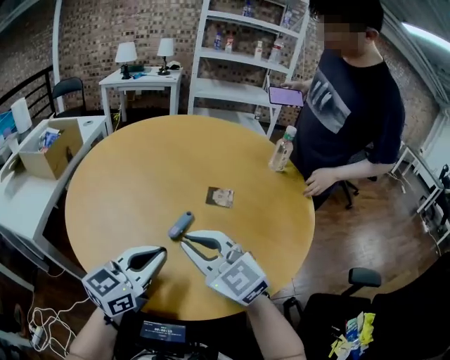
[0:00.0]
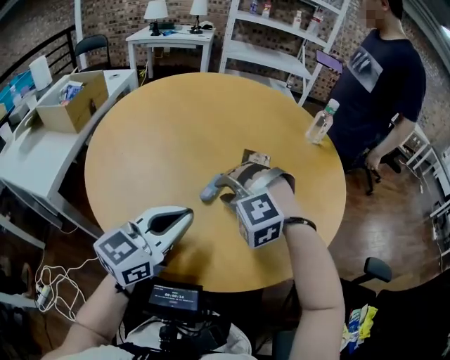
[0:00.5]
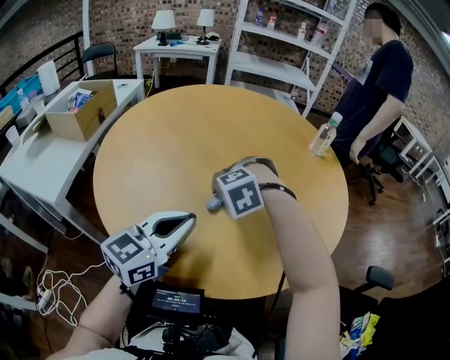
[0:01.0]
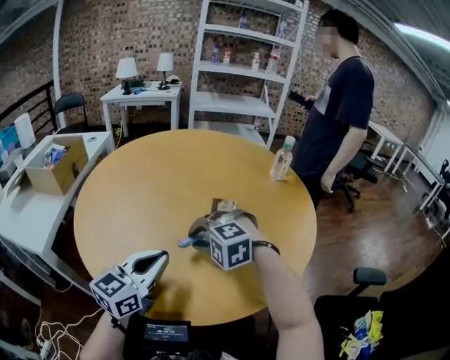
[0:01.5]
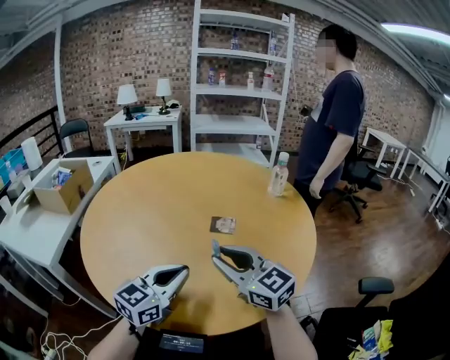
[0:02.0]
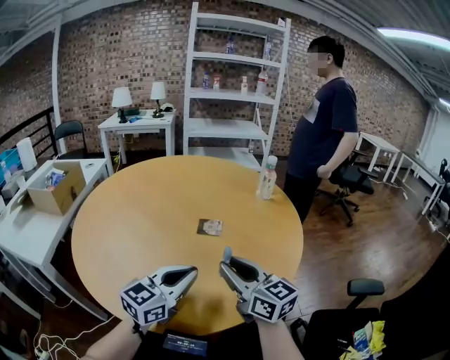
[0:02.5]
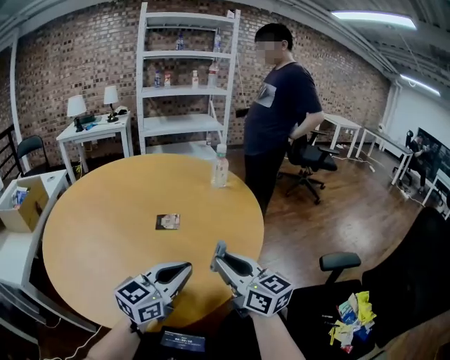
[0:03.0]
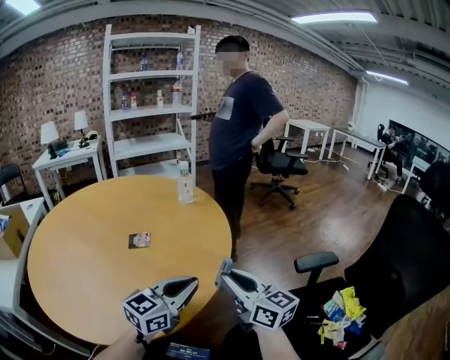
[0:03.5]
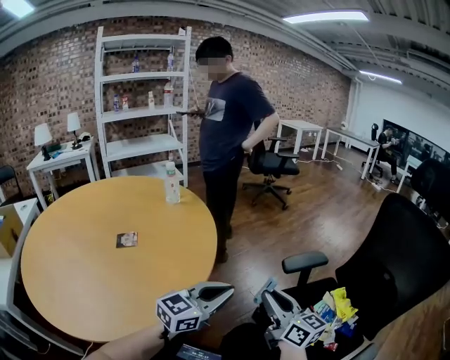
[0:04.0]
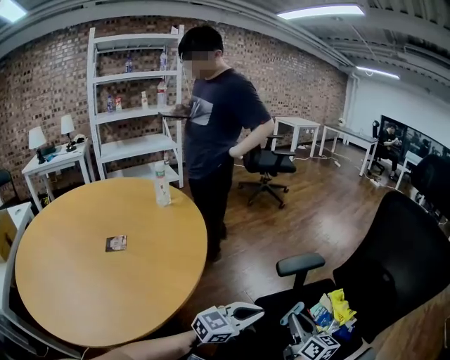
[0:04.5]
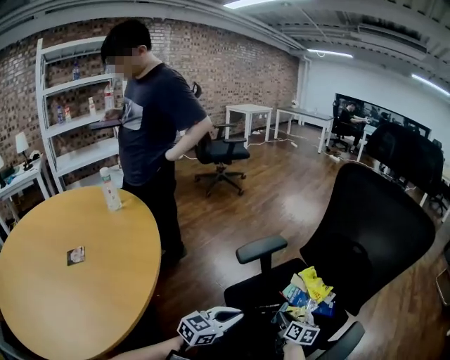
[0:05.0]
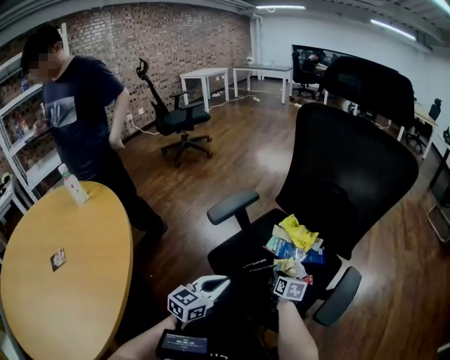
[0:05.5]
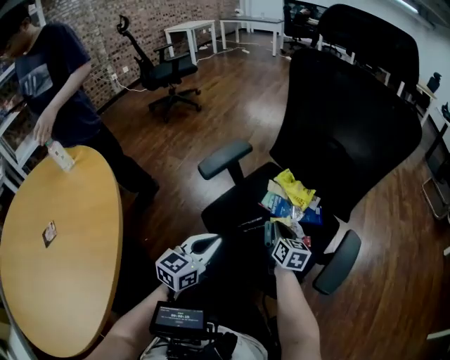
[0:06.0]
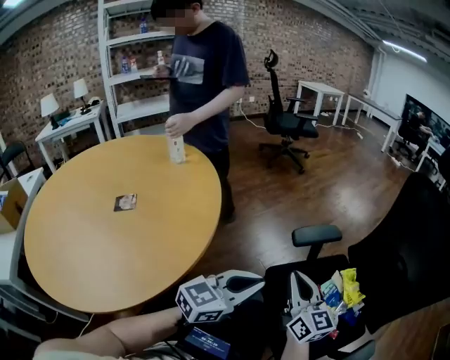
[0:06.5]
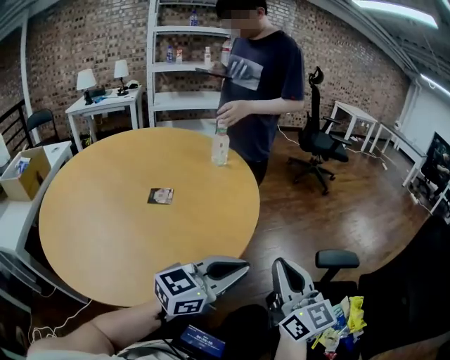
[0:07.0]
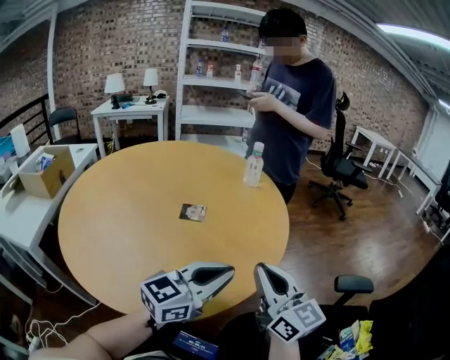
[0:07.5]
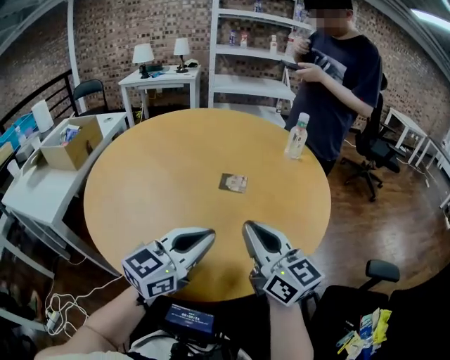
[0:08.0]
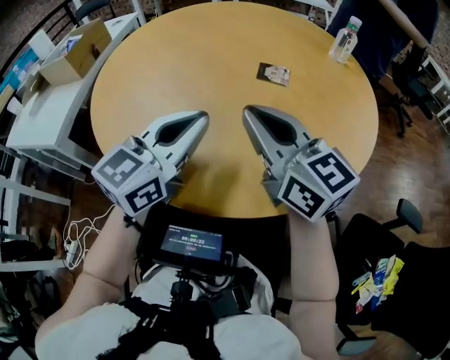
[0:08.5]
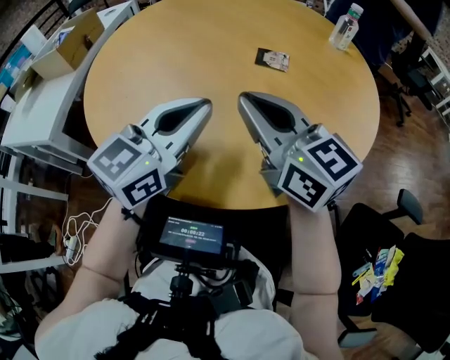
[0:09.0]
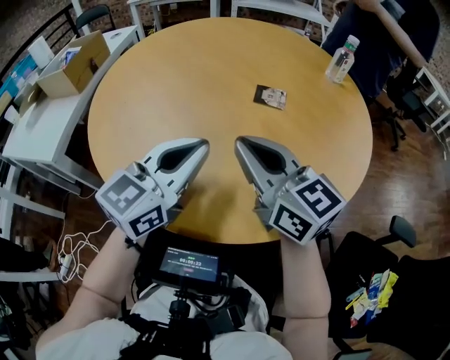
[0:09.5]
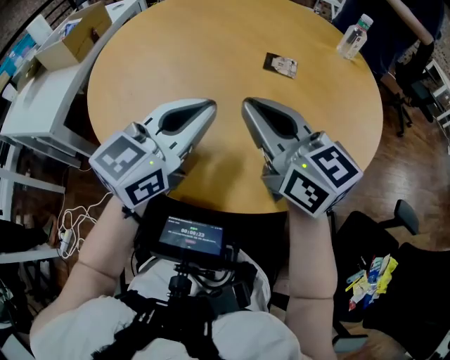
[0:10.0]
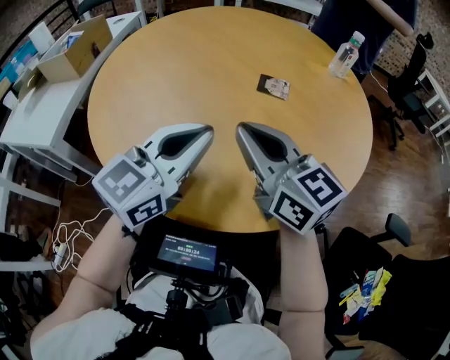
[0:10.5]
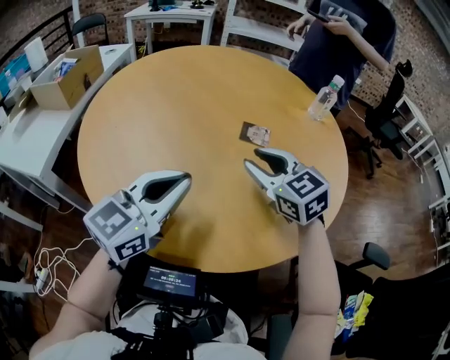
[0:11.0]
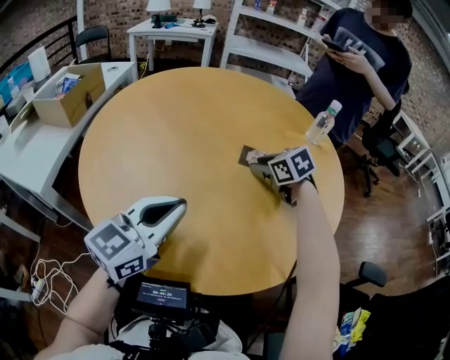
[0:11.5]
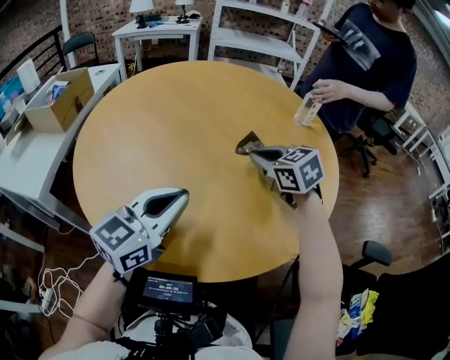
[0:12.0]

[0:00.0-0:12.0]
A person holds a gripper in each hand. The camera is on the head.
0:00.0 to 0:02.0: The right gripper travels downward and back again, roughly 10 cm each way, while the left gripper moves roughly 5 cm.
0:02.0 to 0:04.0: The right gripper moves approximately 40 cm, and turns by approximately 60 degrees. Meanwhile the left gripper ends up some 40 cm from where it was, and rotates about 40 degrees.
0:04.0 to 0:06.0: The right gripper shifts by about 40 cm, and changes its angle by approximately 50 degrees. The left gripper ends up approximately 25 cm from where it was, and changes its angle by some 20 degrees.
0:06.0 to 0:08.0: Both grippers are carried approximately 60 cm. The left gripper rotates some 60 degrees. The right gripper swivels approximately 90 degrees.
0:08.0 to 0:10.0: Both grippers travel together to the left, about 10 cm.
0:10.0 to 0:12.0: The right gripper travels forward and to the right by roughly 20 cm, tips its fingers downward by roughly 30 degrees, and opens, then closes once more.

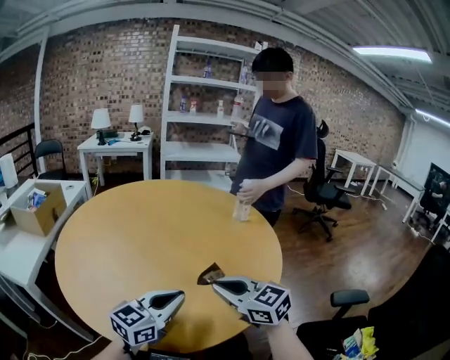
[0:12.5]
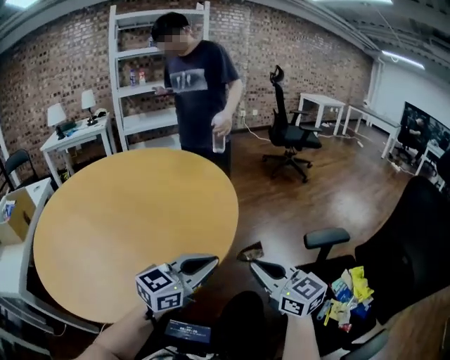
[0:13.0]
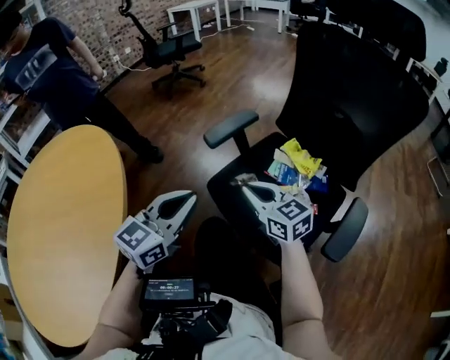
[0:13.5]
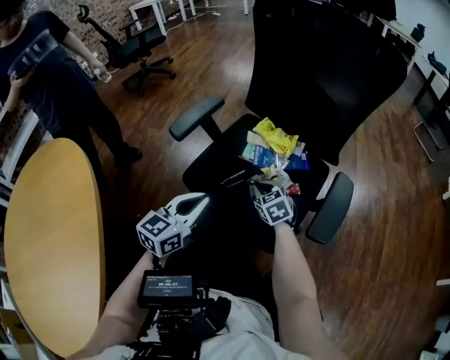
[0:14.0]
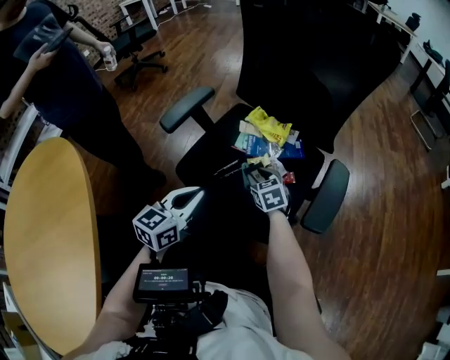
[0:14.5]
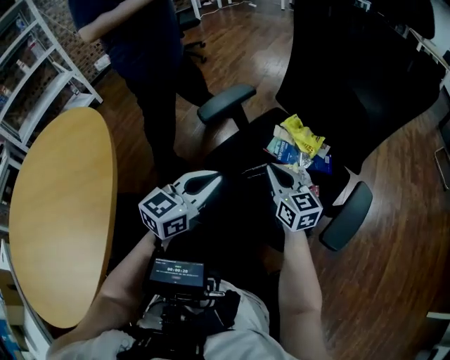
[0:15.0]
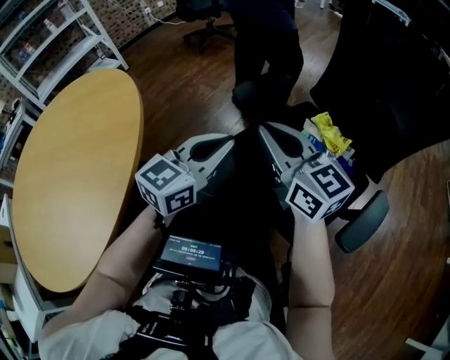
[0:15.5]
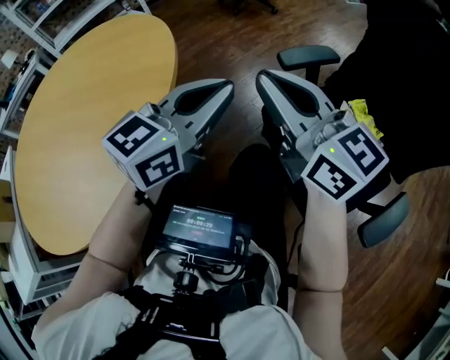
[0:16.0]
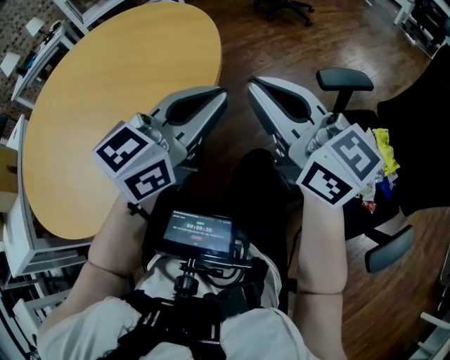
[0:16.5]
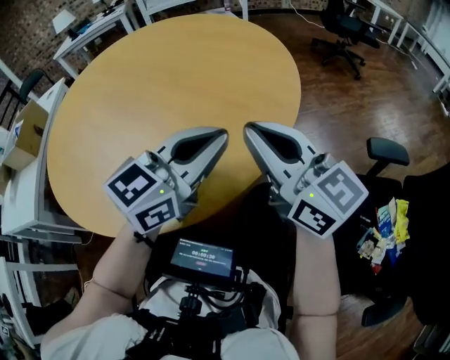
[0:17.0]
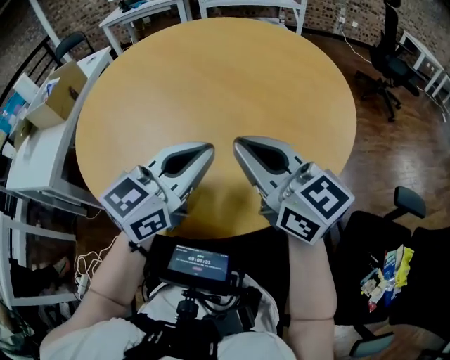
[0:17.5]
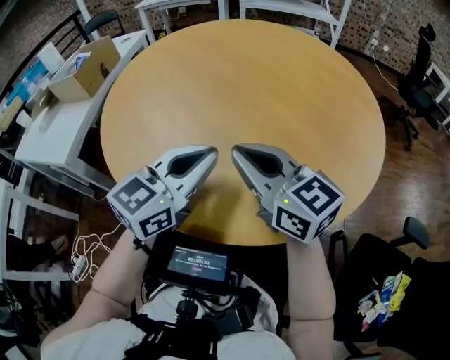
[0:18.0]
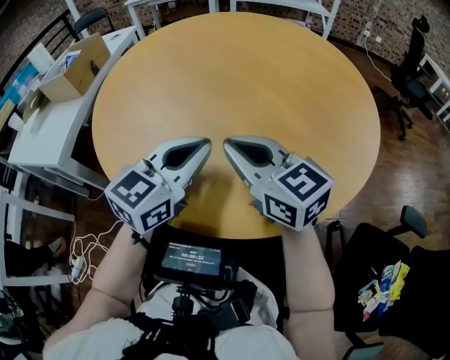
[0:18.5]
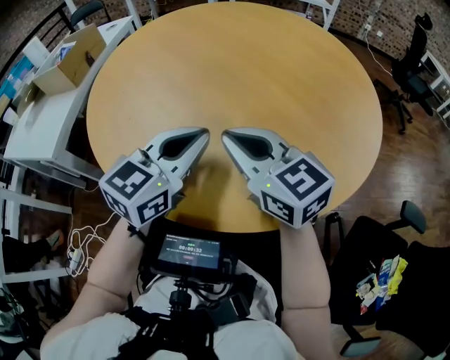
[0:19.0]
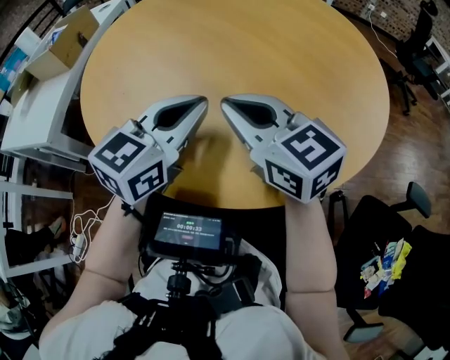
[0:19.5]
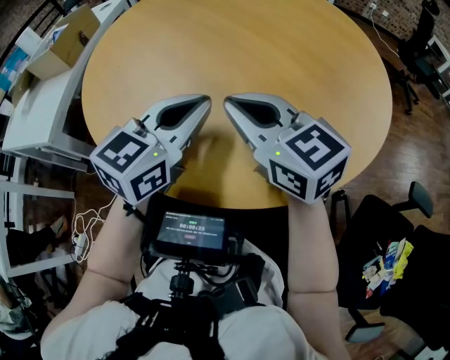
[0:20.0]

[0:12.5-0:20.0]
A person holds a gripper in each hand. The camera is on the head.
0:12.5 to 0:14.5: The pair of grippers is taken about 60 cm. The right gripper turns by some 100 degrees, and opens. The left gripper swivels about 60 degrees.
0:14.5 to 0:16.5: The left gripper shifts by roughly 35 cm, and changes its angle by about 40 degrees. The right gripper changes place by approximately 50 cm, tips its fingers upward by approximately 50 degrees, and closes.
0:16.5 to 0:18.0: The pair of grippers is taken approximately 40 cm. The left gripper turns by about 40 degrees. The right gripper swivels some 40 degrees.
0:18.0 to 0:20.0: There are only small adjustments of the grippers.

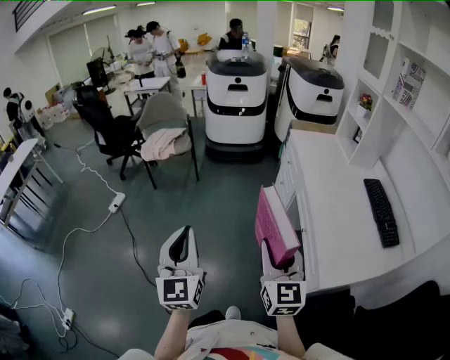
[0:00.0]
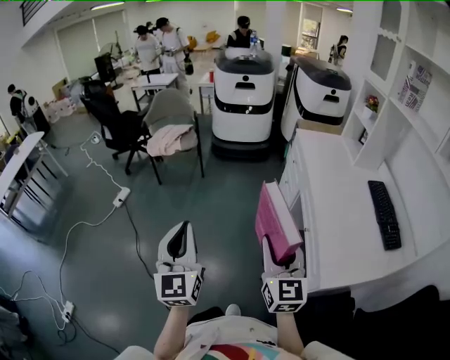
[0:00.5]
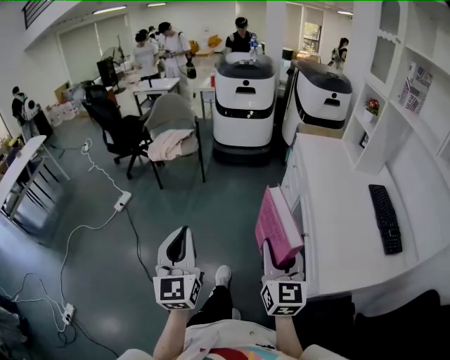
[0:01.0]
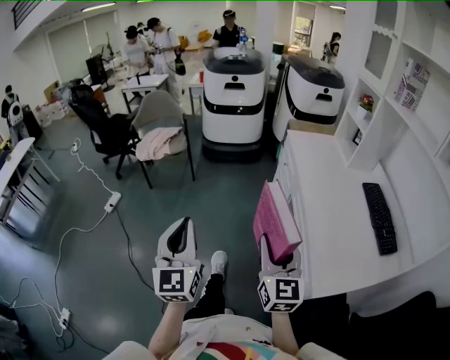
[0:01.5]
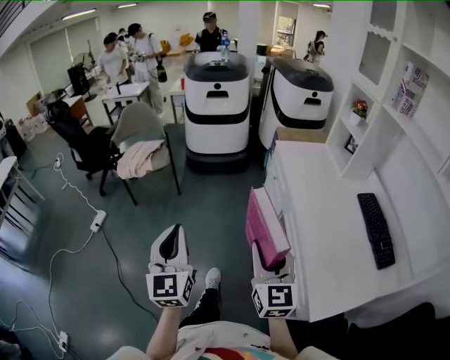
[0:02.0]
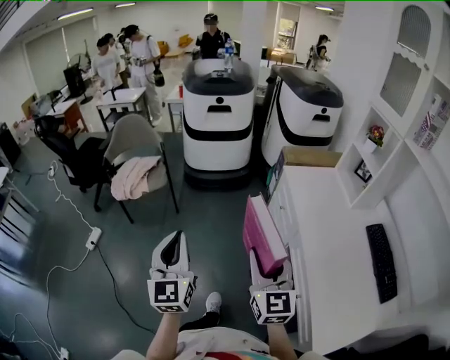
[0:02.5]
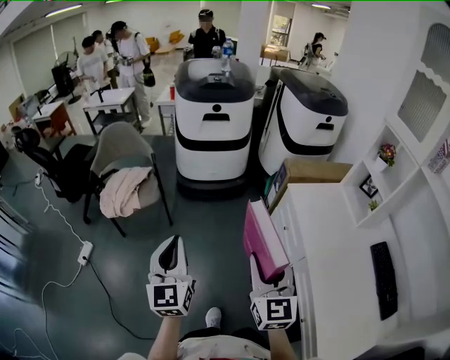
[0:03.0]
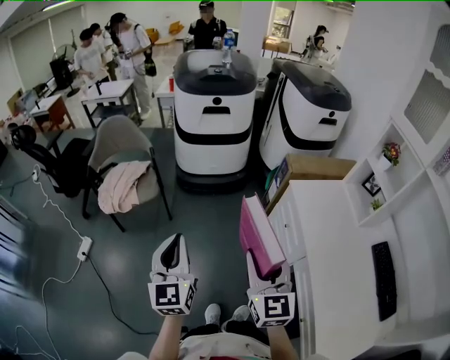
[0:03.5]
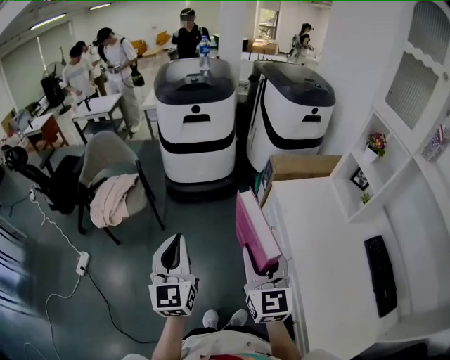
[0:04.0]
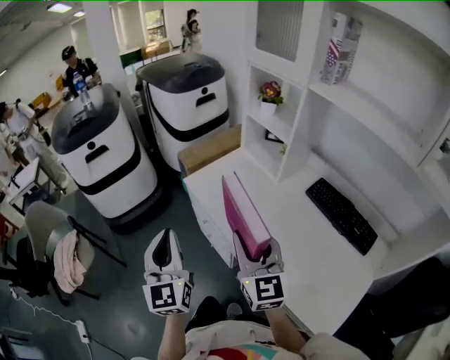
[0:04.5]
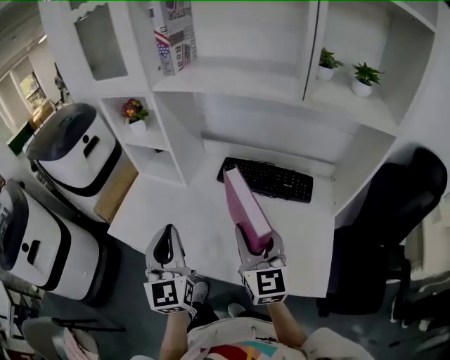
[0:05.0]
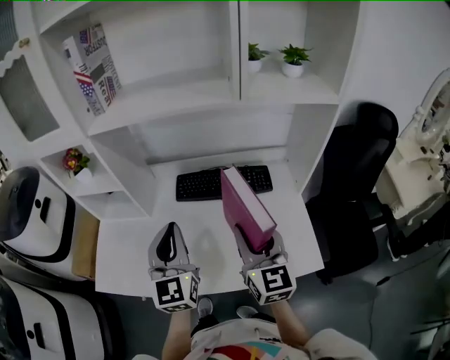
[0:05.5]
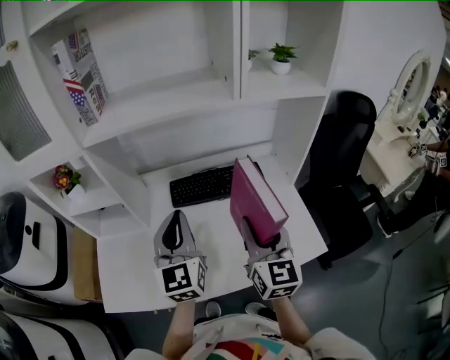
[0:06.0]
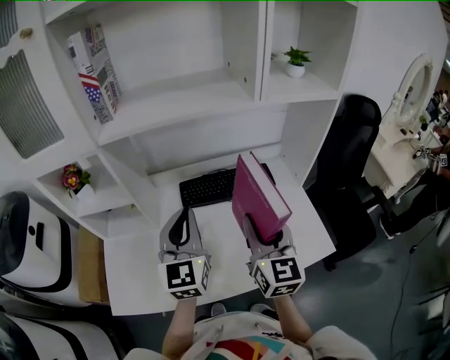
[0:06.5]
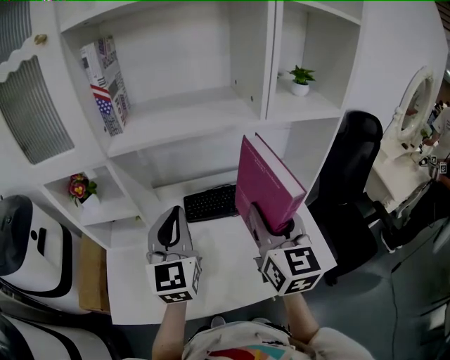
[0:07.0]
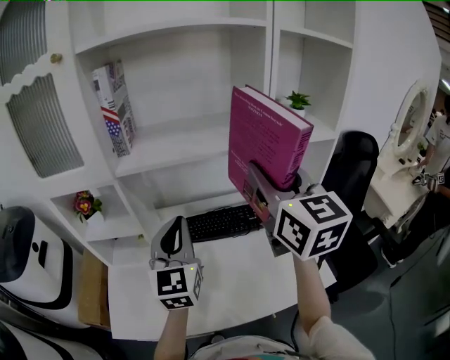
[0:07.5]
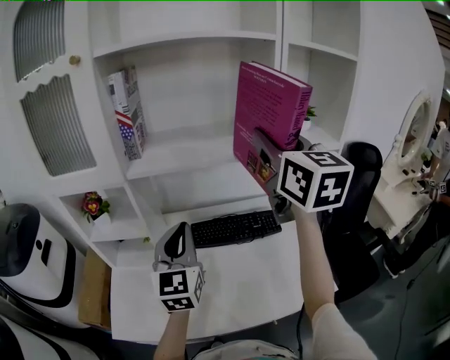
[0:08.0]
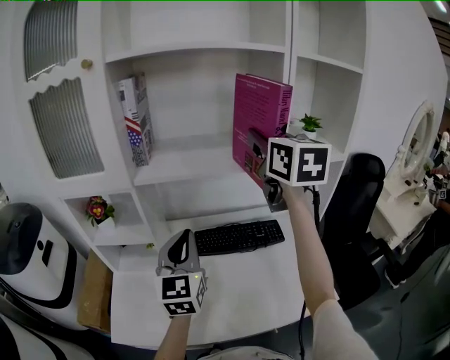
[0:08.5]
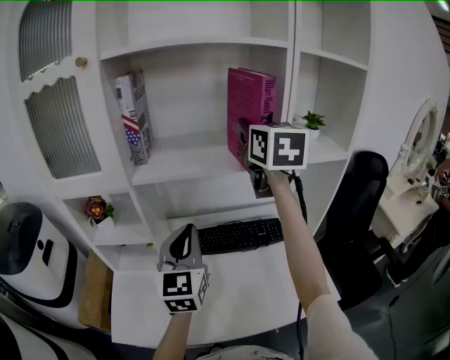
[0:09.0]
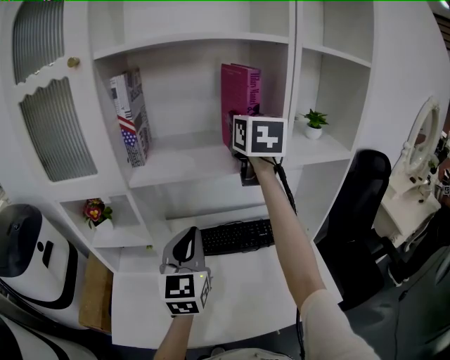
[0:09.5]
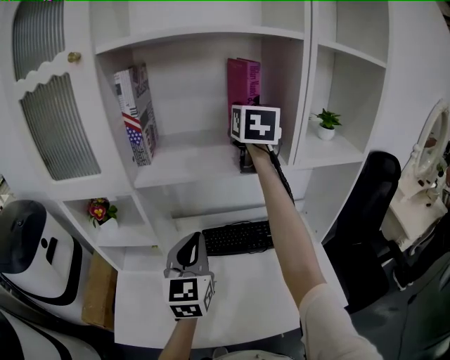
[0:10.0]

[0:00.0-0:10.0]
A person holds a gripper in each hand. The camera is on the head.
0:00.0 to 0:02.0: The grippers both shift forward by some 15 cm.
0:02.0 to 0:04.0: Both grippers travel together forward, some 35 cm.
0:04.0 to 0:06.0: The two grippers travel together, some 50 cm. The left gripper changes its angle by approximately 90 degrees, while the right gripper turns by roughly 100 degrees.
0:06.0 to 0:08.0: The left gripper shifts approximately 10 cm upward and to the left, while the right gripper is displaced upward by some 30 cm.
0:08.0 to 0:10.0: The right gripper goes about 20 cm forward.
